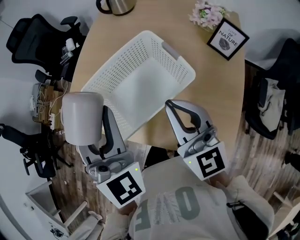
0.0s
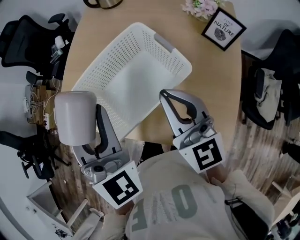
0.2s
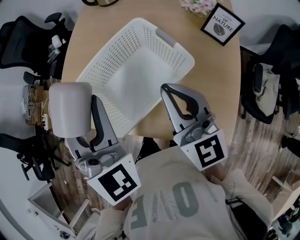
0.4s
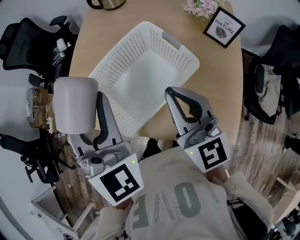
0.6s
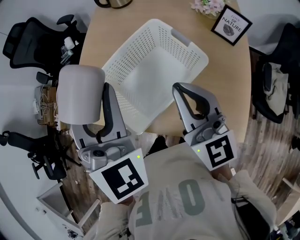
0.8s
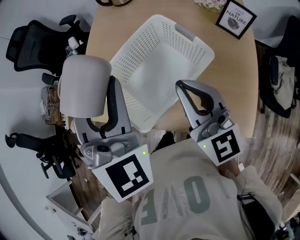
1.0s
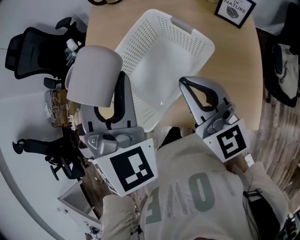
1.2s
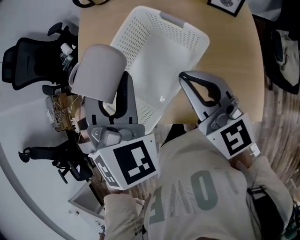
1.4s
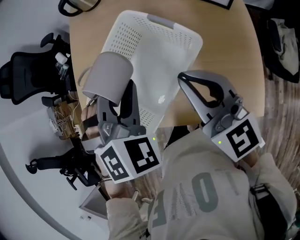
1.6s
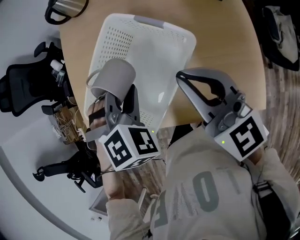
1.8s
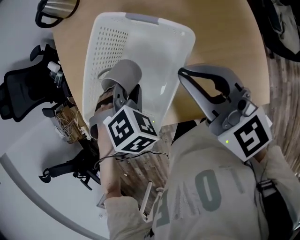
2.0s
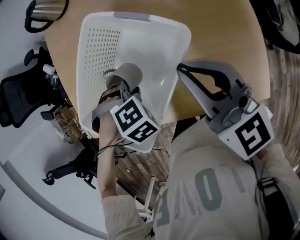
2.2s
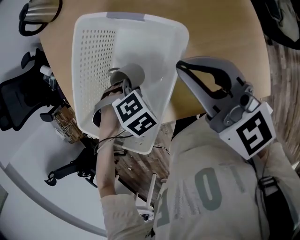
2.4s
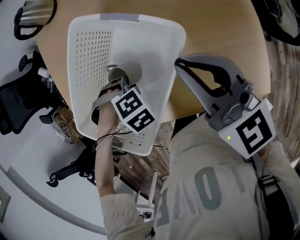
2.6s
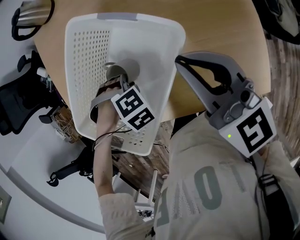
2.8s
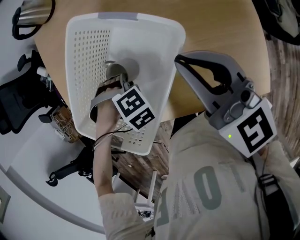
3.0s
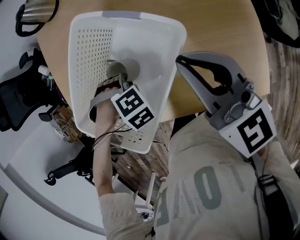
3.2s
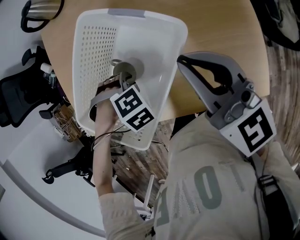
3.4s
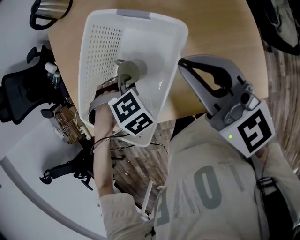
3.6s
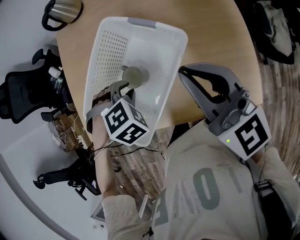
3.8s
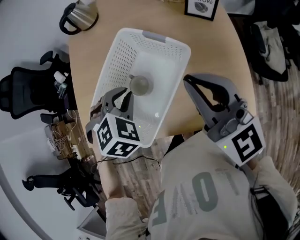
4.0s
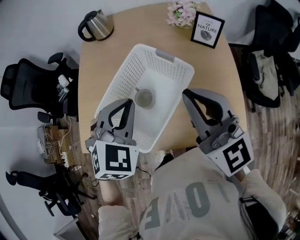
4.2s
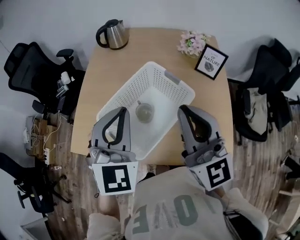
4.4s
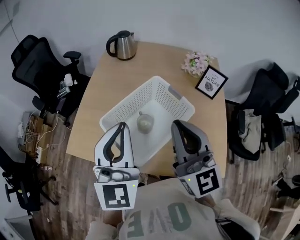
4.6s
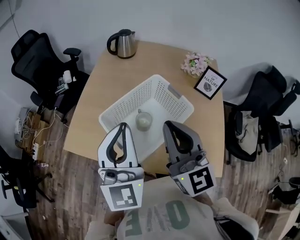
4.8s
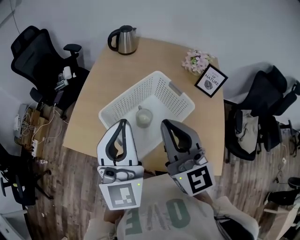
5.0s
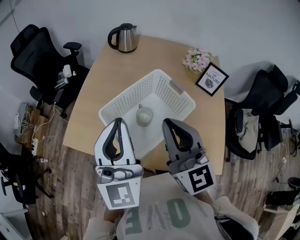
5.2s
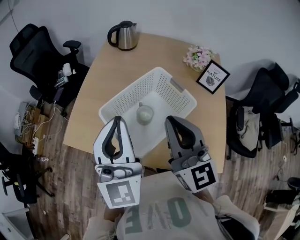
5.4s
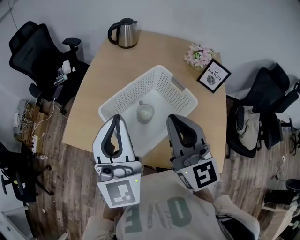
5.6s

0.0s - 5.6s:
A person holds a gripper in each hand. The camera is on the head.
0.0s - 1.4s: The left gripper heads forward, covering about 5 cm, and changes its angle by some 40 degrees.
1.4s - 2.8s: The right gripper moves approximately 10 cm, while the left gripper goes roughly 30 cm downward, and points its fingers some 50 degrees further downward.
2.8s - 4.2s: The right gripper moves upward, about 15 cm, and swivels some 20 degrees. Meanwhile the left gripper travels upward by approximately 30 cm, and points its fingers some 50 degrees further upward.
4.2s - 5.6s: The left gripper is displaced upward and to the left by some 15 cm, and tips its fingers upward by some 40 degrees. Meanwhile the right gripper goes approximately 5 cm to the left.

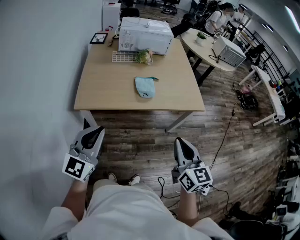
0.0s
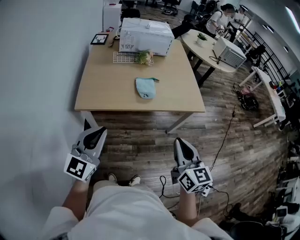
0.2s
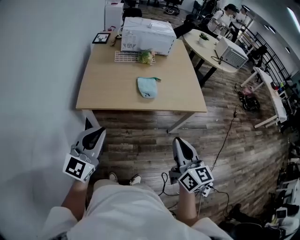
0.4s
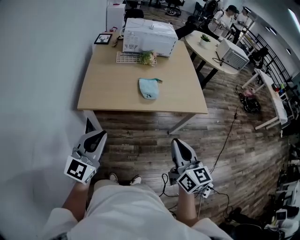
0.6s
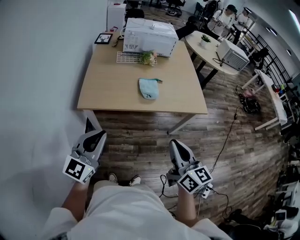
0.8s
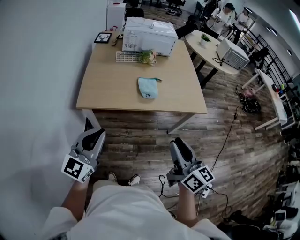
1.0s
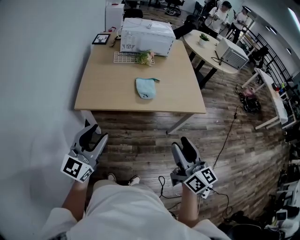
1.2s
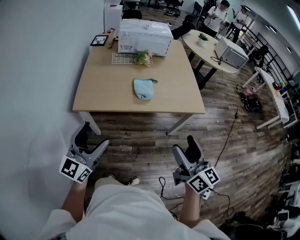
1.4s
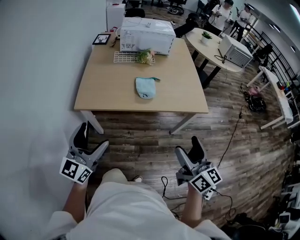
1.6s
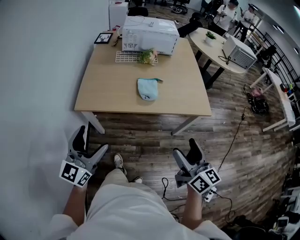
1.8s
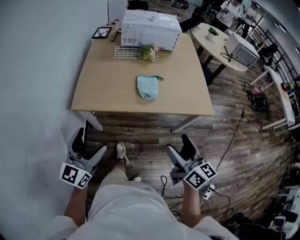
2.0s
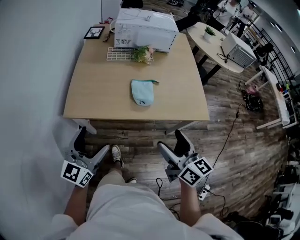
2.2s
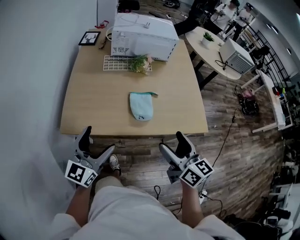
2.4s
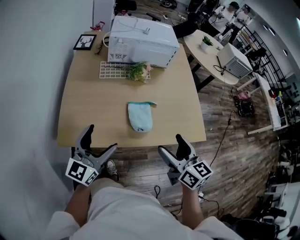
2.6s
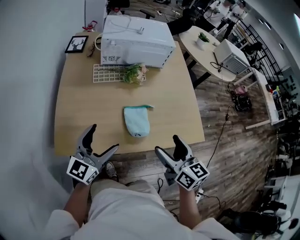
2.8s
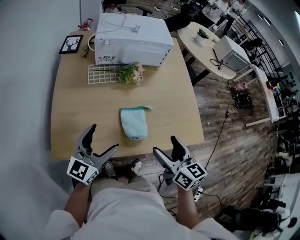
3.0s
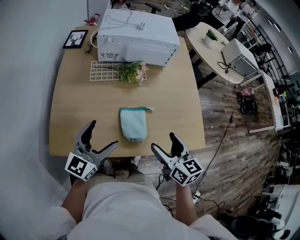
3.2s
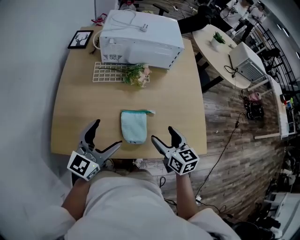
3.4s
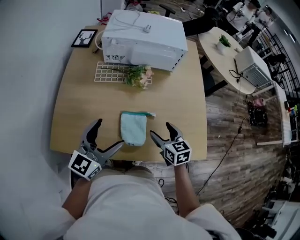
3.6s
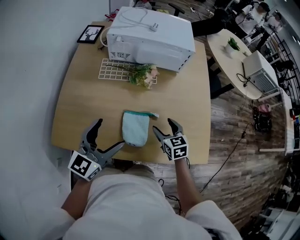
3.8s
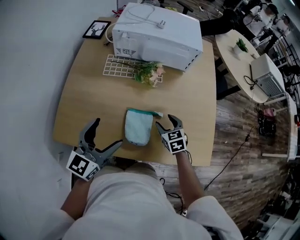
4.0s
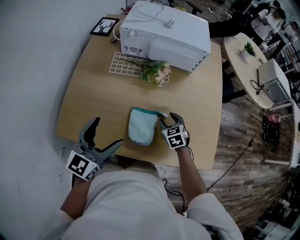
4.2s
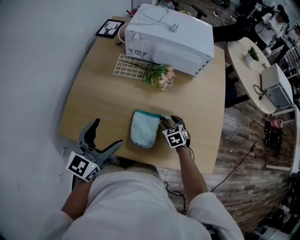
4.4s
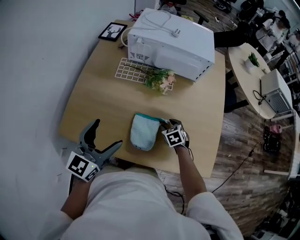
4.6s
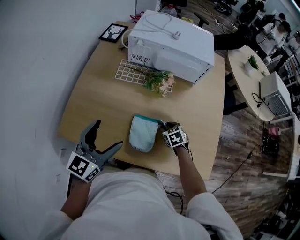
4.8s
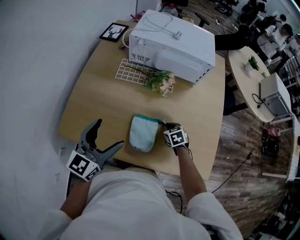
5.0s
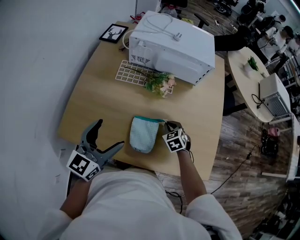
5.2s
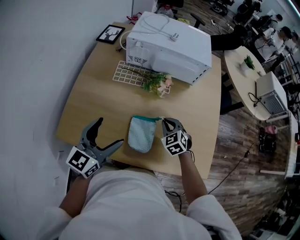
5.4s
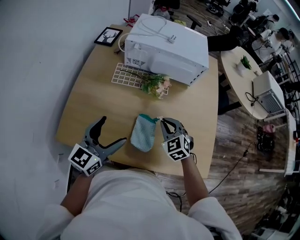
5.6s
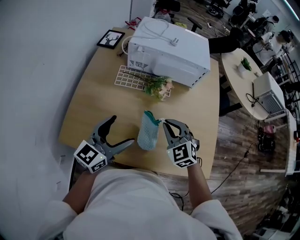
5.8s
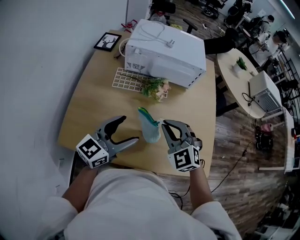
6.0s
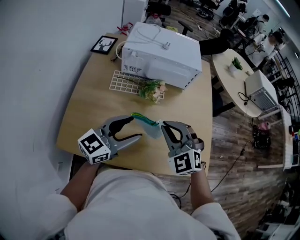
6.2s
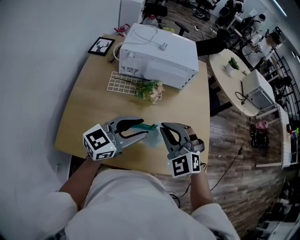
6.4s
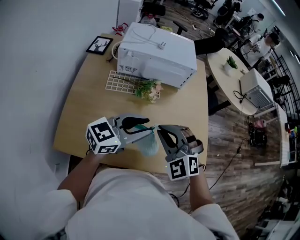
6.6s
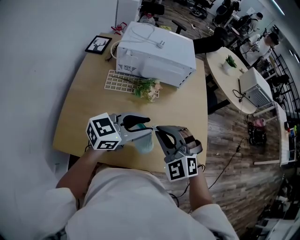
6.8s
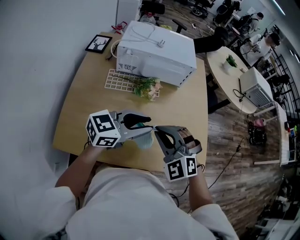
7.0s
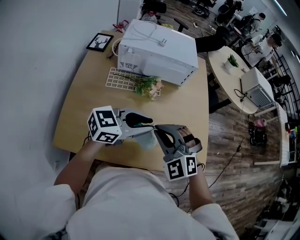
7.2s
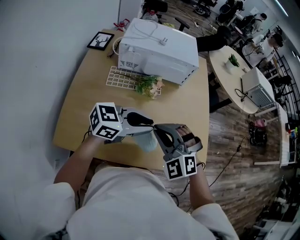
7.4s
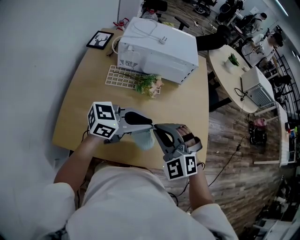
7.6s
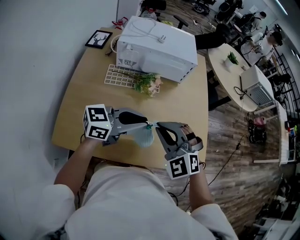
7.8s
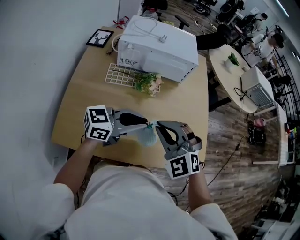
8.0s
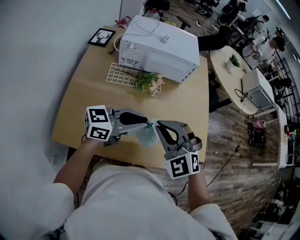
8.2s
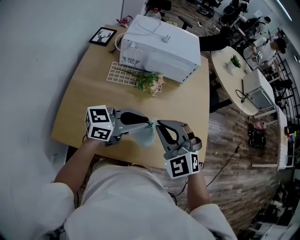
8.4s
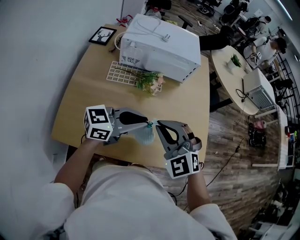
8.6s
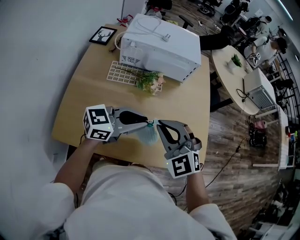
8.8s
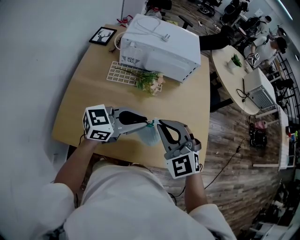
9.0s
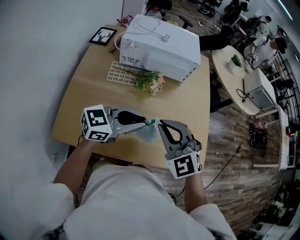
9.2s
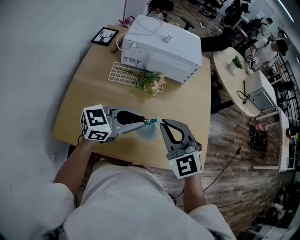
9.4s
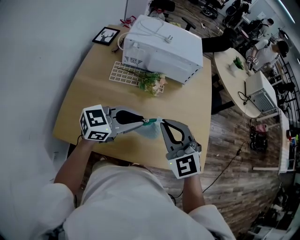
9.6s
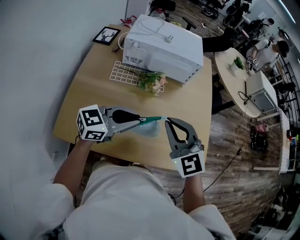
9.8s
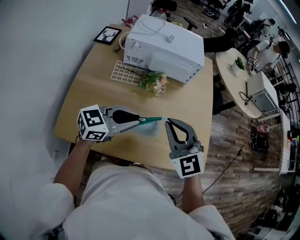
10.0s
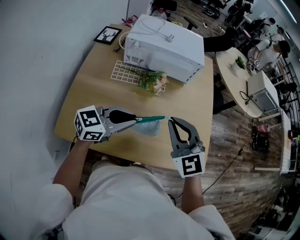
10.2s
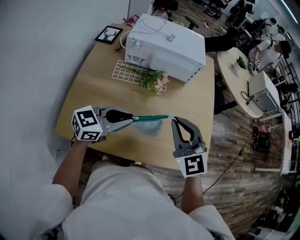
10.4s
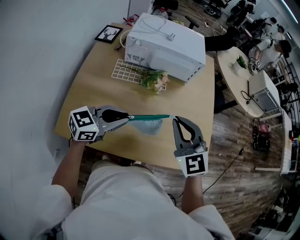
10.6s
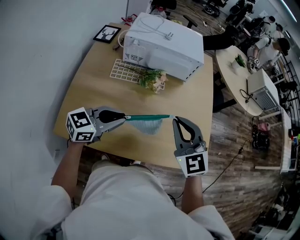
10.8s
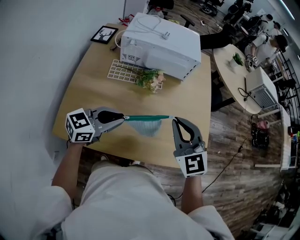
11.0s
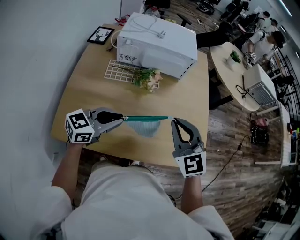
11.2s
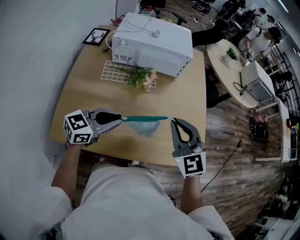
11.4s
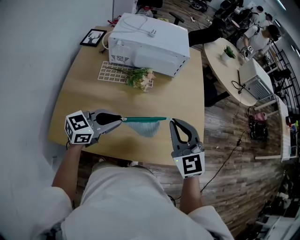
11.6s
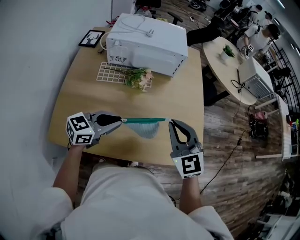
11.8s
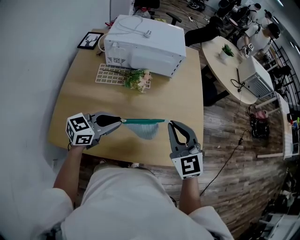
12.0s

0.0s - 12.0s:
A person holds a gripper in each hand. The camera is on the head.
0.0s - 1.6s: The left gripper opens up, while the right gripper moves to the right, roughly 5 cm, turns by some 20 degrees, and opens.
1.6s - 3.0s: The two grippers go roughly 35 cm forward. The right gripper changes its angle by some 20 degrees.
3.0s - 4.4s: The right gripper heads downward and forward, covering roughly 30 cm, points its fingers some 40 degrees further downward, and closes up. The left gripper rotates approximately 20 degrees.
4.4s - 6.0s: The right gripper shifts approximately 25 cm upward, rotates roughly 40 degrees, and closes up. Meanwhile the left gripper changes place by some 5 cm, and rotates roughly 20 degrees.
6.0s - 7.6s: The right gripper shifts some 5 cm backward. The left gripper travels to the right by some 10 cm, changes its angle by some 40 degrees, and closes its fingers.
7.6s - 9.0s: The grippers make only small movements.
9.0s - 10.4s: The left gripper travels to the left by some 5 cm.
10.4s - 12.0s: The right gripper moves to the right, approximately 5 cm.

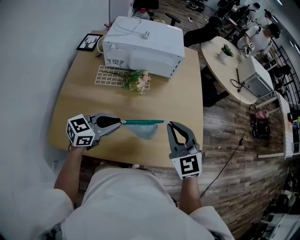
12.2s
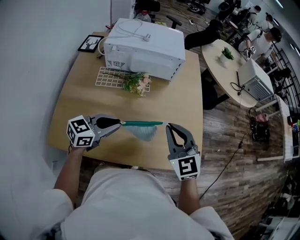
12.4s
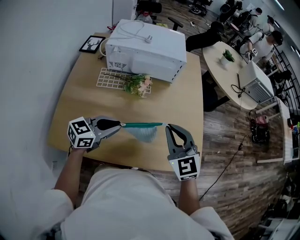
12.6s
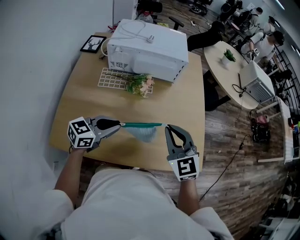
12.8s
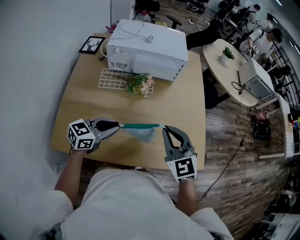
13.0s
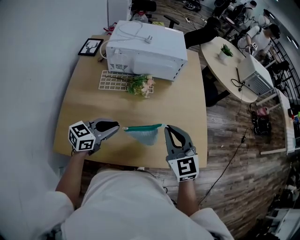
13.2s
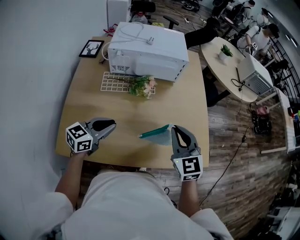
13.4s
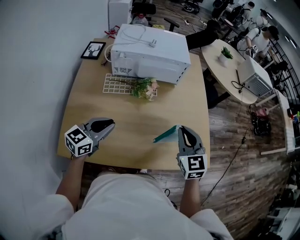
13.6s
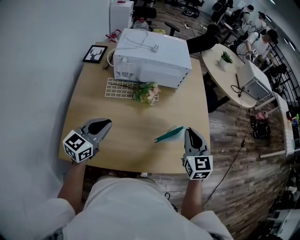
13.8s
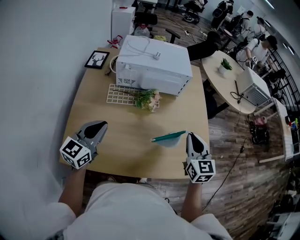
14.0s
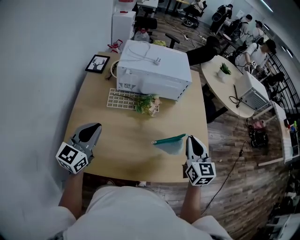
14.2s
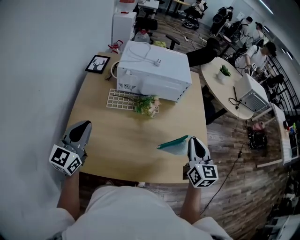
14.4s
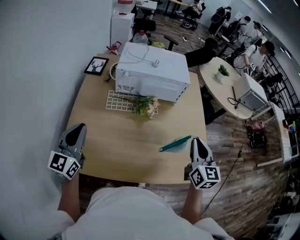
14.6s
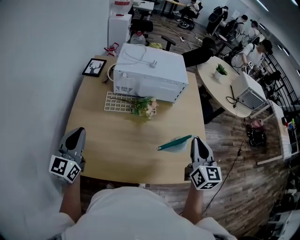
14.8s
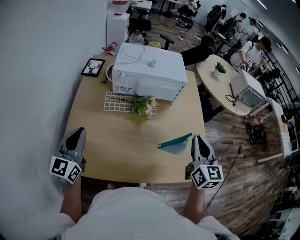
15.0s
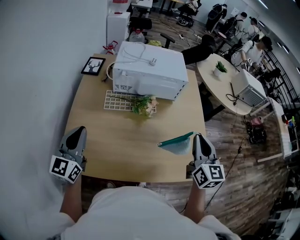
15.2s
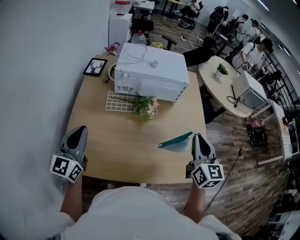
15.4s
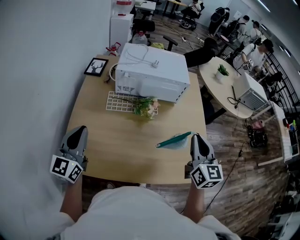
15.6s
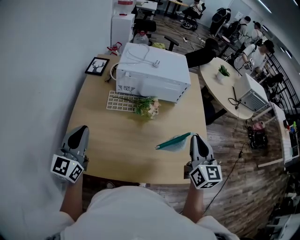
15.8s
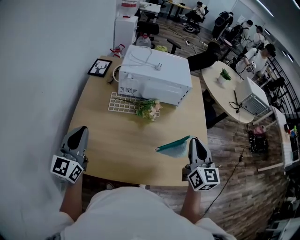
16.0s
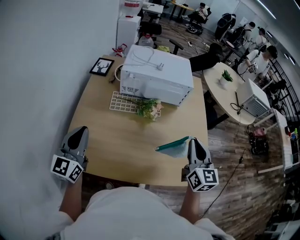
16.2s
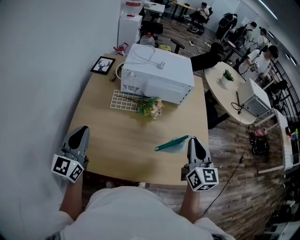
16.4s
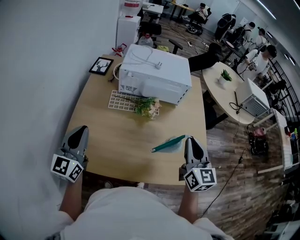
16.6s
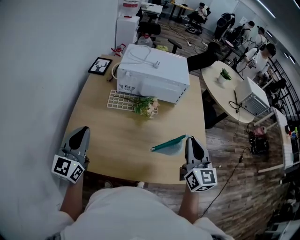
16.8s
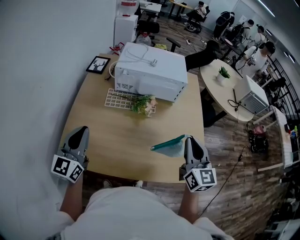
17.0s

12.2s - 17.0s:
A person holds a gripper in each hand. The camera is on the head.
12.2s - 13.8s: The right gripper swivels about 20 degrees; the left gripper goes about 15 cm to the left, and changes its angle by some 20 degrees.
13.8s - 15.4s: The right gripper heads upward, covering about 10 cm, while the left gripper travels to the left and upward by about 15 cm, and turns by about 30 degrees.
15.4s - 17.0s: The left gripper changes place by some 5 cm.

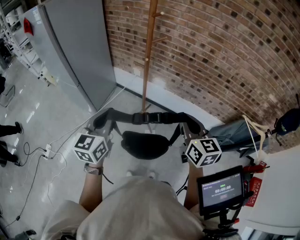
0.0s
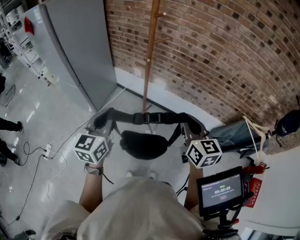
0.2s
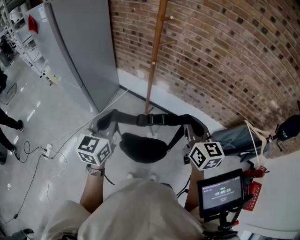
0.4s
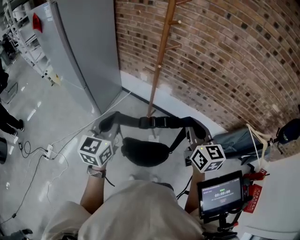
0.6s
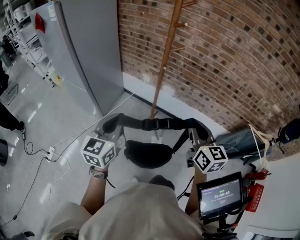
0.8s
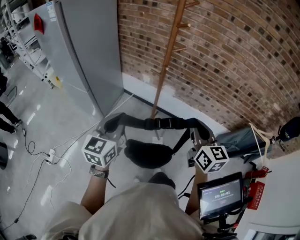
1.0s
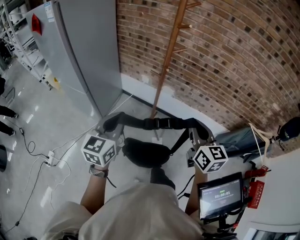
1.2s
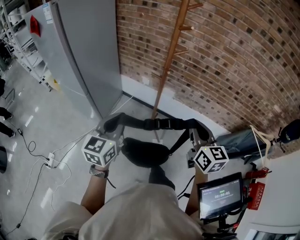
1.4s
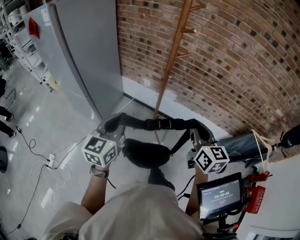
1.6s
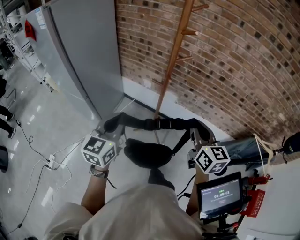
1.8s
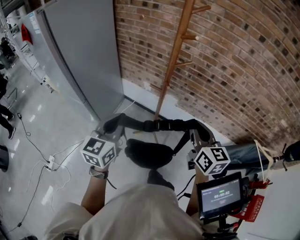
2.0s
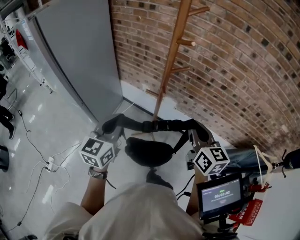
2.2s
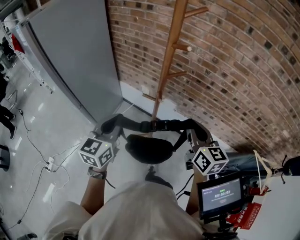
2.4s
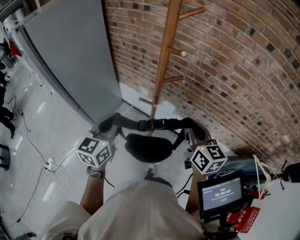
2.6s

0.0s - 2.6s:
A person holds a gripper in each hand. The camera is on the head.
0.0s - 1.2s: Both grippers move to the left, approximately 5 cm.
1.2s - 2.6s: Both grippers move forward, about 20 cm.
